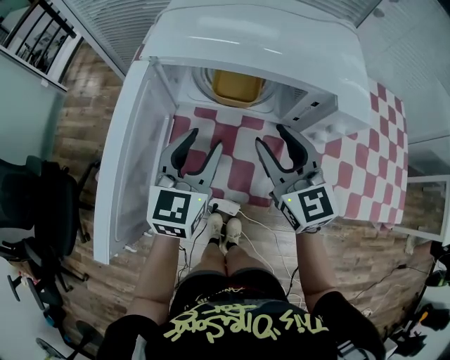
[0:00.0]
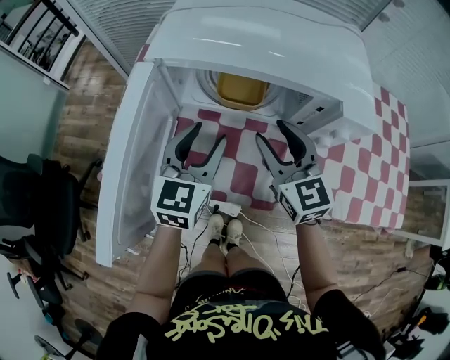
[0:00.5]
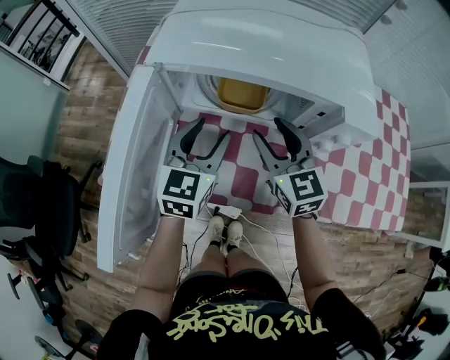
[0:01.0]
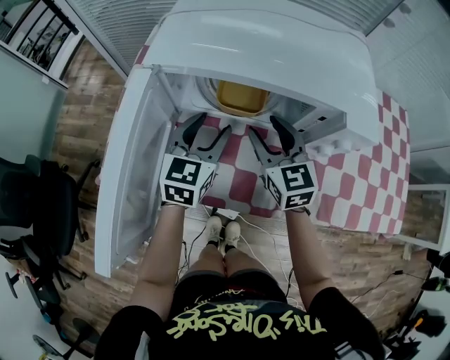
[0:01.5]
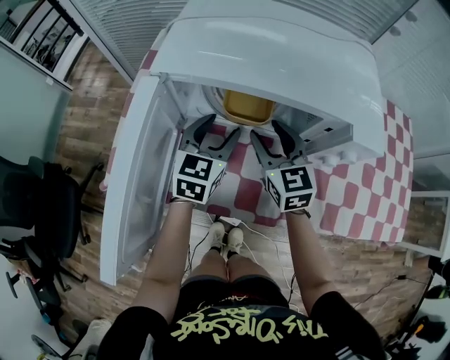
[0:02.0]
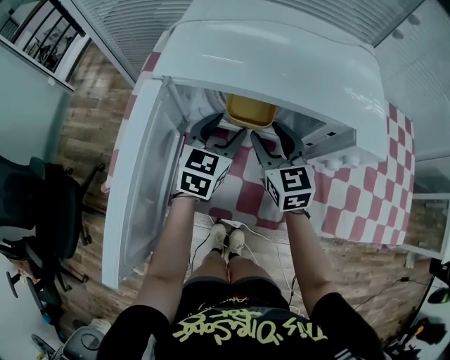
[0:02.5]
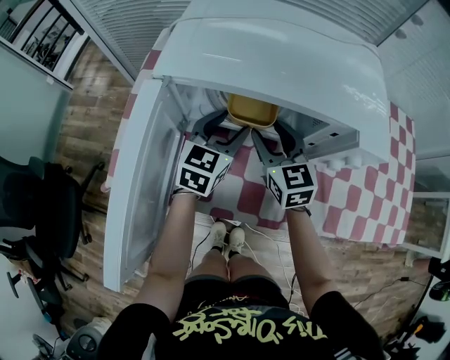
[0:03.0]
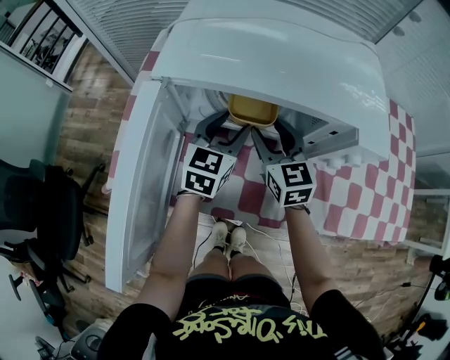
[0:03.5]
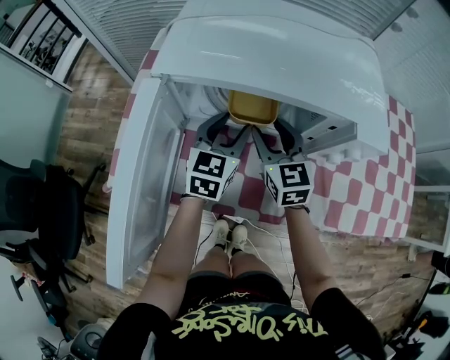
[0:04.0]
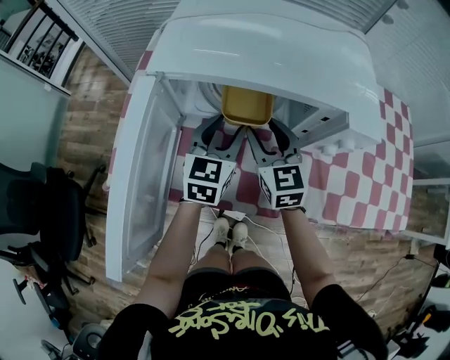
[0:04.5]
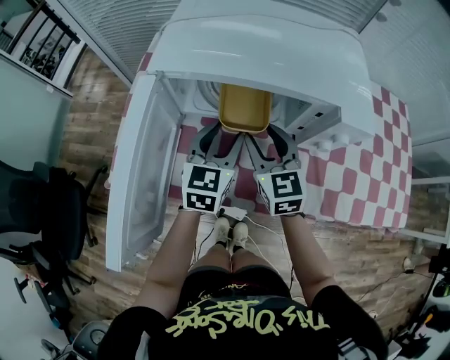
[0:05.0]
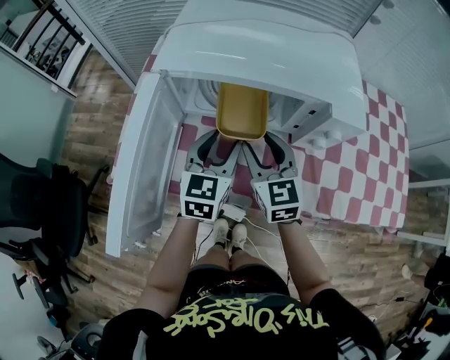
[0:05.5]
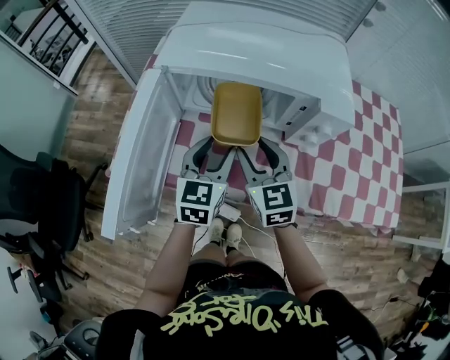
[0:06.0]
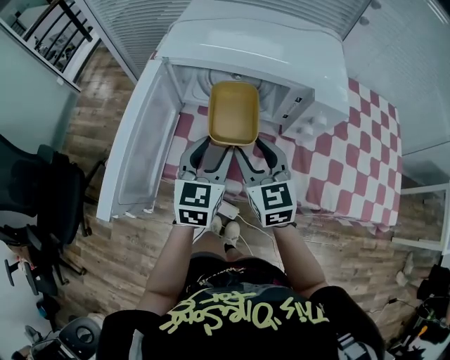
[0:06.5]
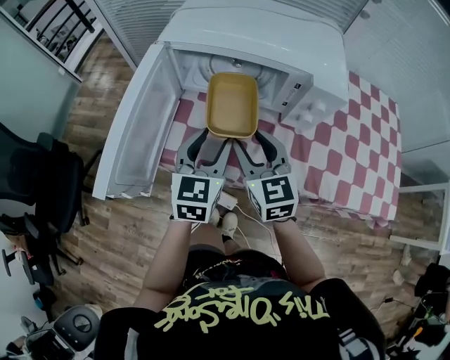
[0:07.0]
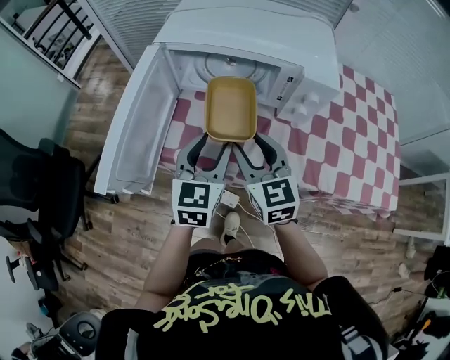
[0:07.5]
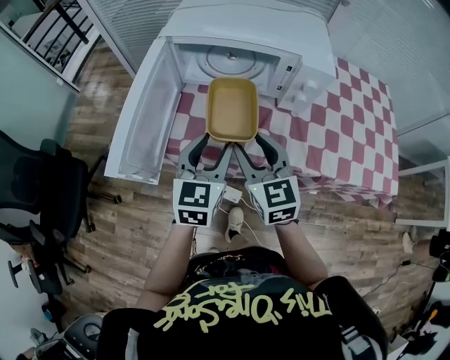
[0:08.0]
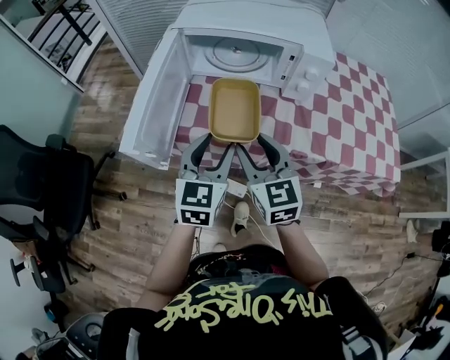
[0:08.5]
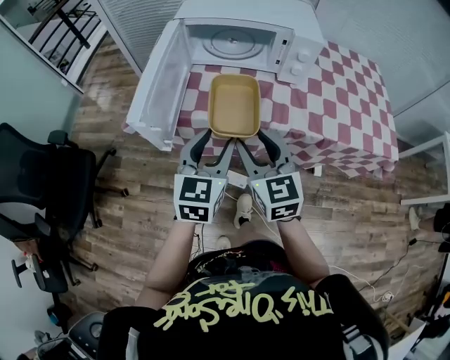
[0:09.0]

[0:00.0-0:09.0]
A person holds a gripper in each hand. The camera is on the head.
0:00.0 to 0:02.0: Both grippers travel together forward and downward, about 10 cm.
0:02.0 to 0:04.5: The grippers stay close to where they were, moving slightly.
0:04.5 to 0:07.0: Both grippers travel together backward, about 15 cm.
0:07.0 to 0:09.0: The two grippers go about 15 cm backward.

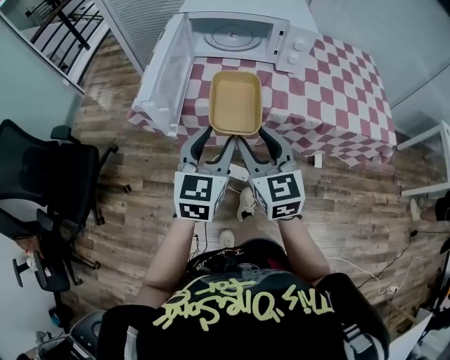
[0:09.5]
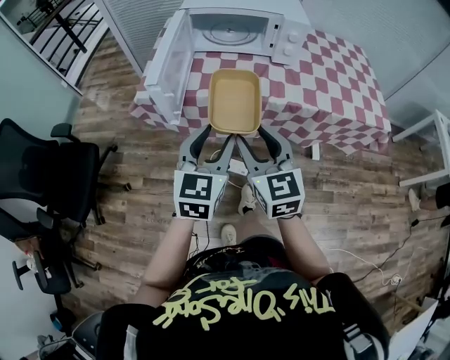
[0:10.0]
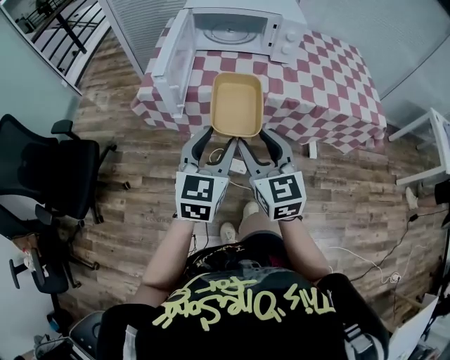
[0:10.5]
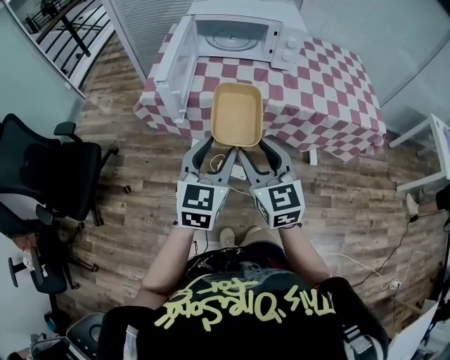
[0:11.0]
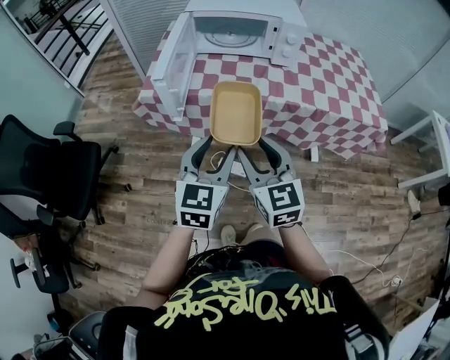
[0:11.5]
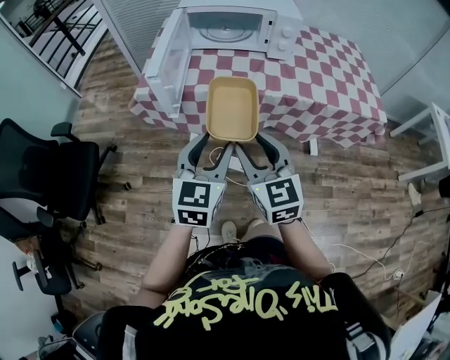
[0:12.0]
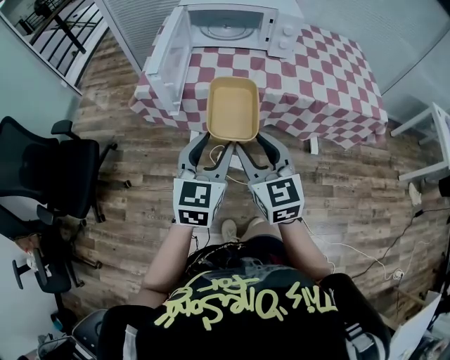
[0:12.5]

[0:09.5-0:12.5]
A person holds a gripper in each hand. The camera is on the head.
0:09.5 to 0:11.0: The two grippers go about 10 cm backward.
0:11.0 to 0:12.5: Neither gripper changes place.

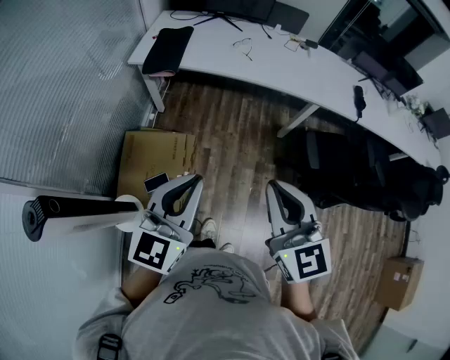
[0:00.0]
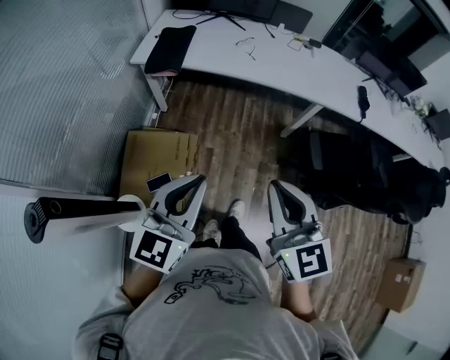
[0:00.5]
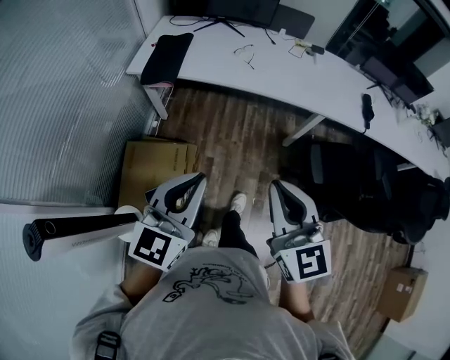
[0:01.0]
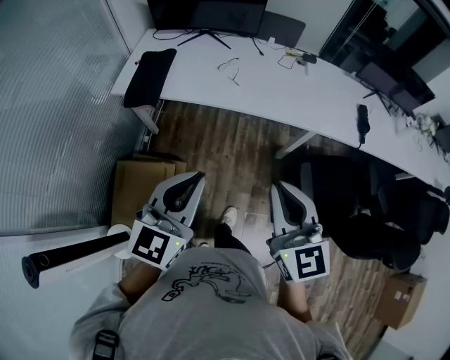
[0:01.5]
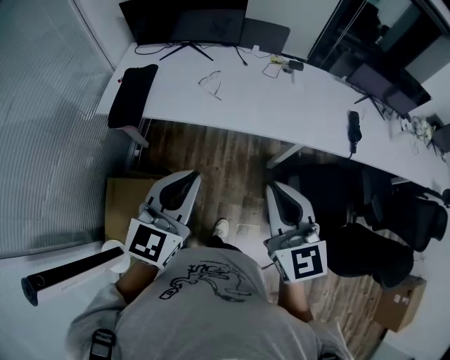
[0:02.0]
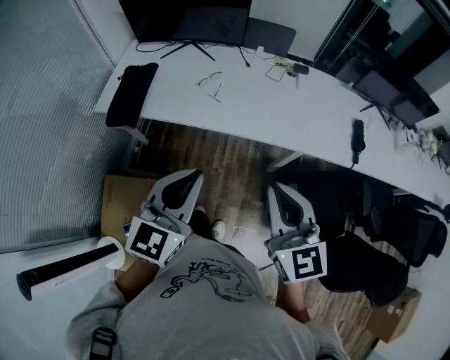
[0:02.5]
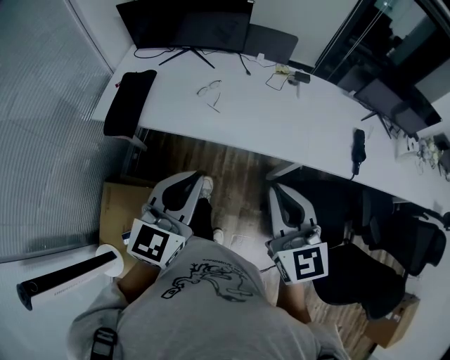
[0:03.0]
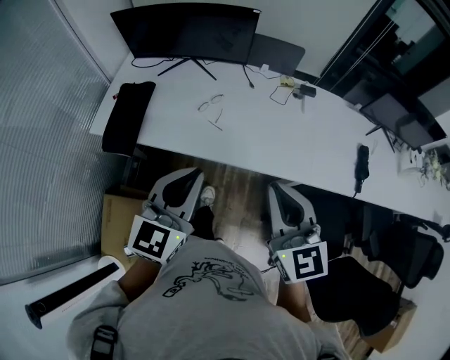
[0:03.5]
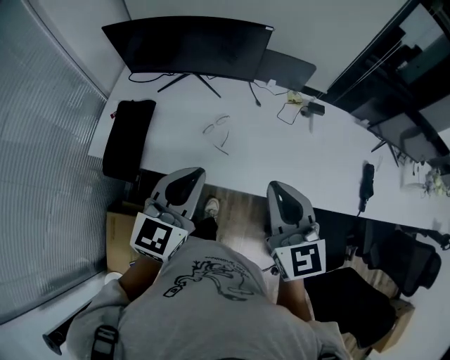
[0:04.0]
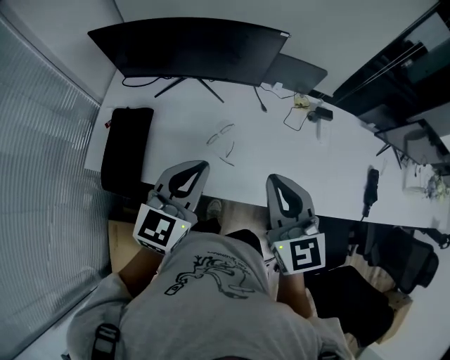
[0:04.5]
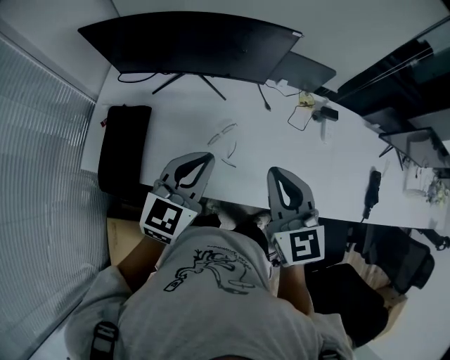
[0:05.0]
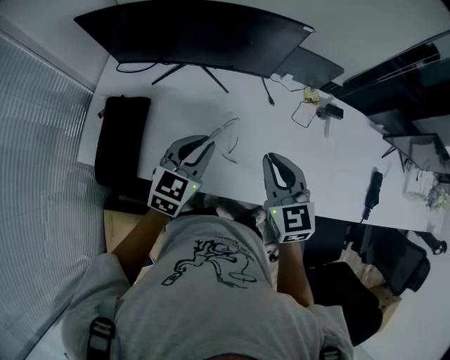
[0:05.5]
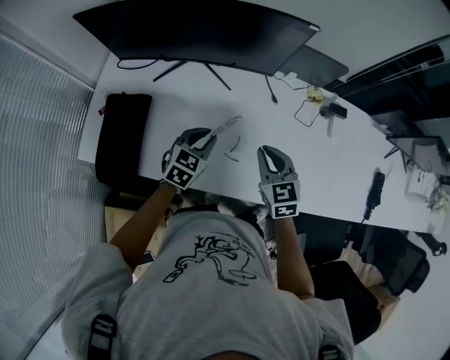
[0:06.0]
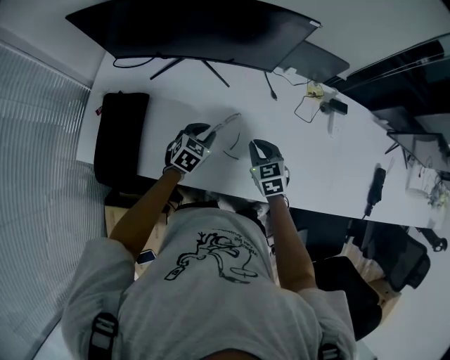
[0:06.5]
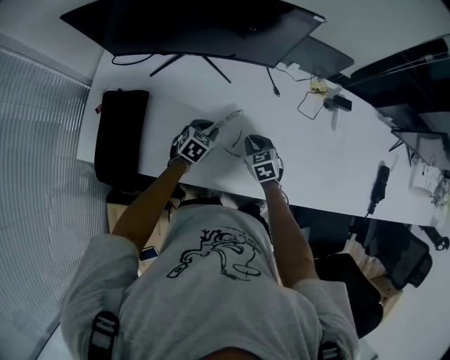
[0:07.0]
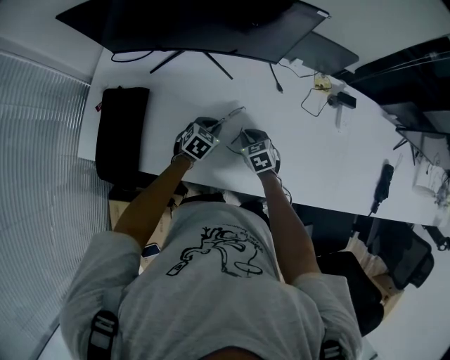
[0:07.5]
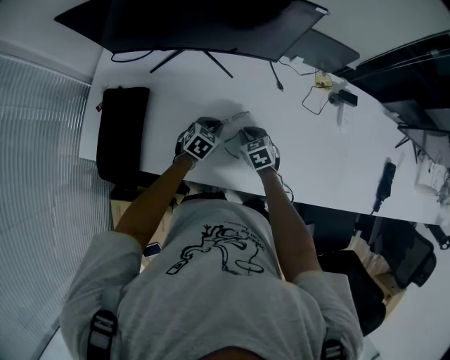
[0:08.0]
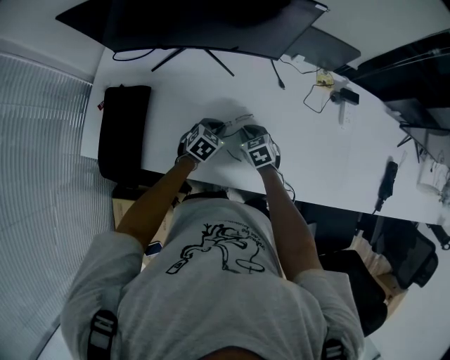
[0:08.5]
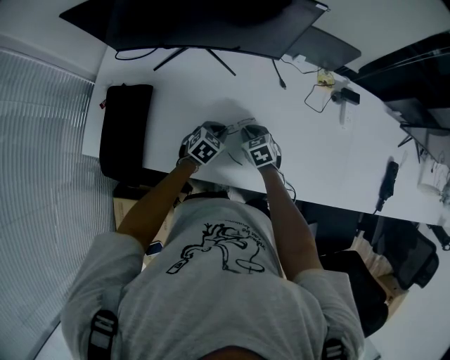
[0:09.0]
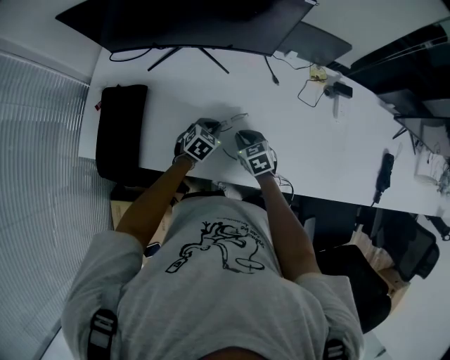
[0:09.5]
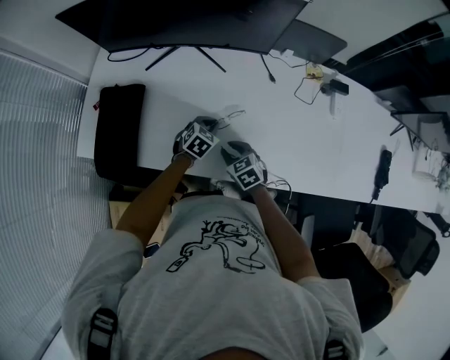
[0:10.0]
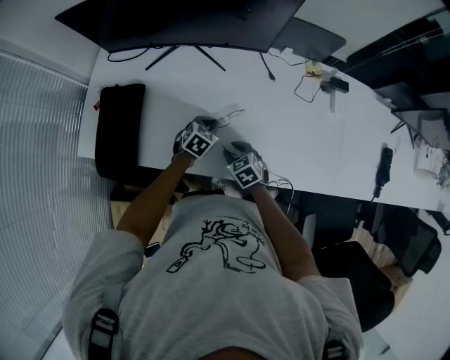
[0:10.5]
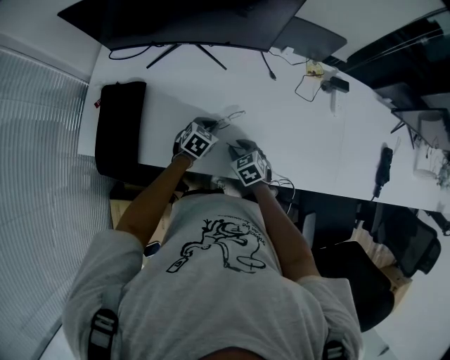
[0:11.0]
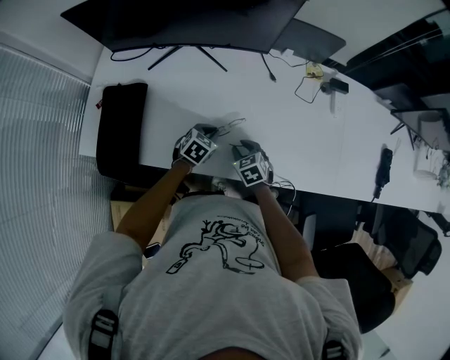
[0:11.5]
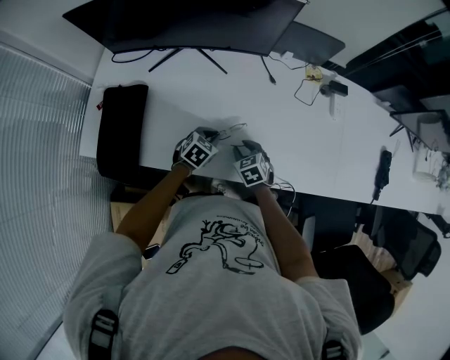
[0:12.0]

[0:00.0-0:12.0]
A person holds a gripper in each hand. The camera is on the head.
0:00.0 to 0:02.0: Both grippers move forward and to the right, about 35 cm.
0:02.0 to 0:04.0: Both grippers move forward, about 35 cm.
0:04.0 to 0:06.0: The grippers both shift downward and forward by some 35 cm. The right gripper swivels approximately 20 degrees. Meanwhile the left gripper swivels about 30 degrees.
0:06.0 to 0:08.0: Both grippers travel together downward, some 20 cm. The right gripper turns by about 20 degrees.
0:08.0 to 0:10.0: The right gripper goes roughly 10 cm backward.
0:10.0 to 0:12.0: The right gripper moves approximately 5 cm.

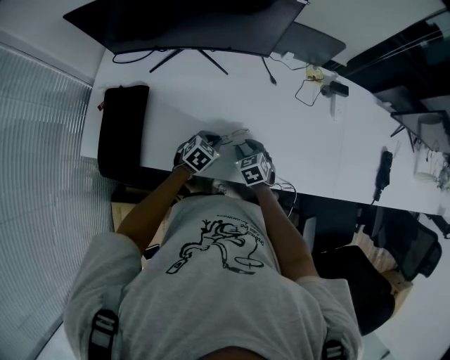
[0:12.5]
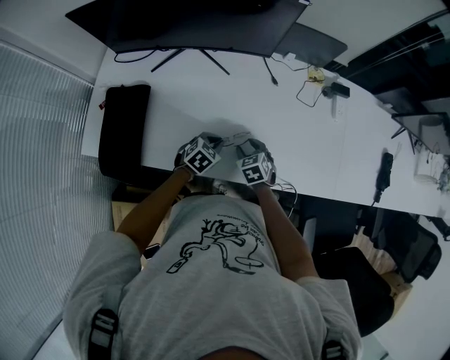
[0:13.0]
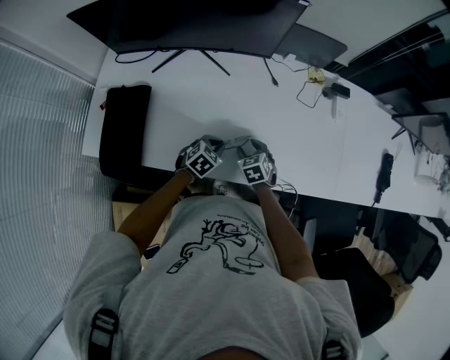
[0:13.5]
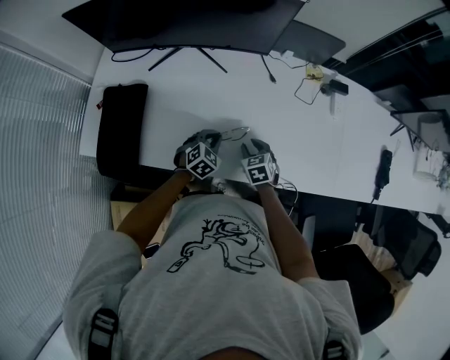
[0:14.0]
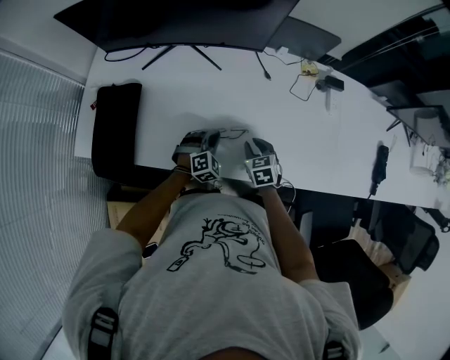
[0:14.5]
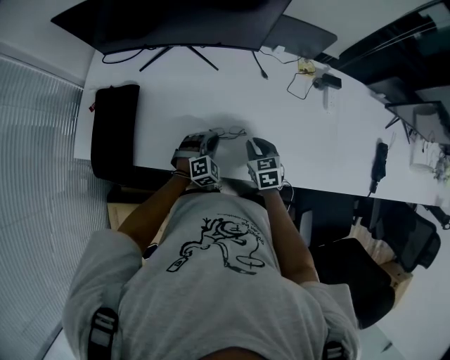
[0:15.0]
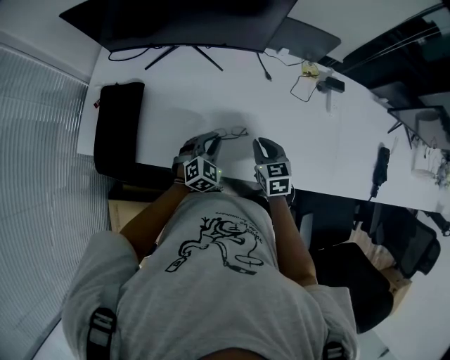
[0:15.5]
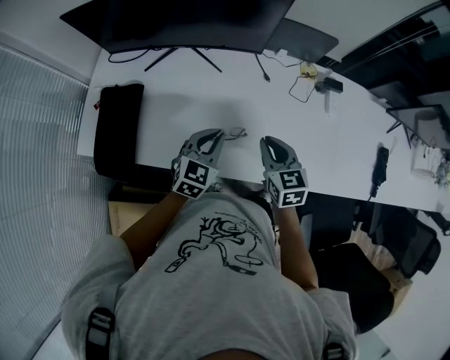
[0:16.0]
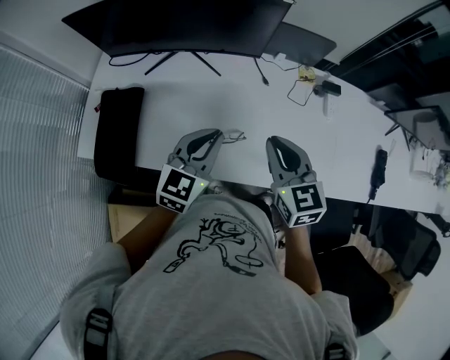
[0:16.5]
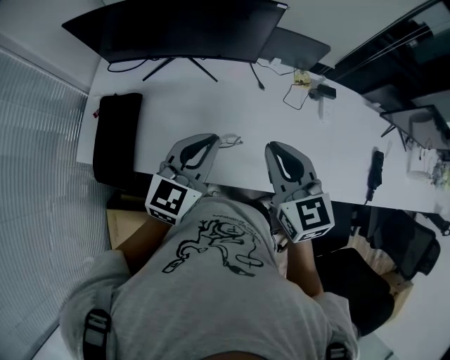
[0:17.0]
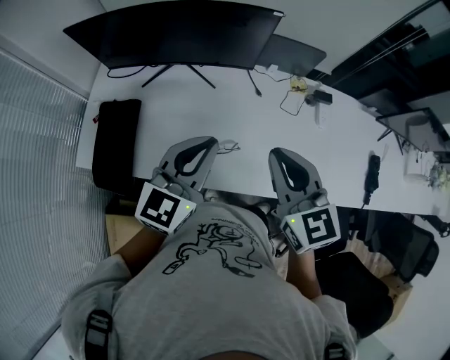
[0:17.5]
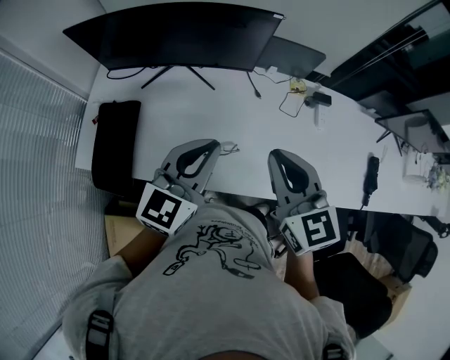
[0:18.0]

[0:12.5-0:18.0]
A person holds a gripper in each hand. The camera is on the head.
0:12.5 to 0:14.5: The right gripper shifts by roughly 5 cm; the left gripper rotates roughly 40 degrees.
0:14.5 to 0:16.0: Both grippers travel together upward, about 20 cm. The left gripper turns by approximately 40 degrees.
0:16.0 to 0:18.0: The two grippers go approximately 20 cm upward. The left gripper changes its angle by roughly 20 degrees.
